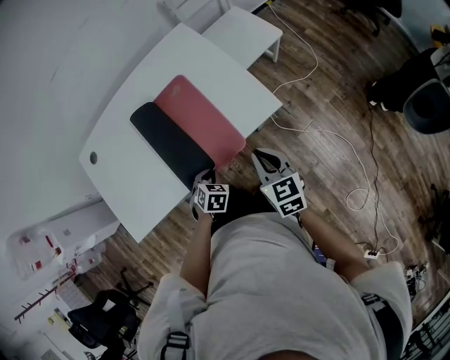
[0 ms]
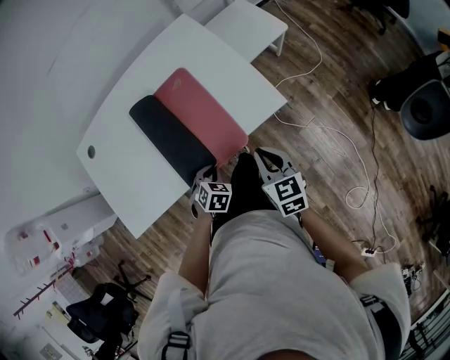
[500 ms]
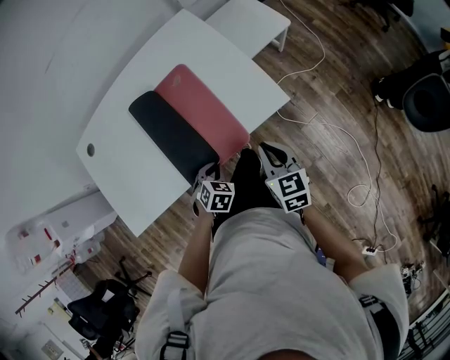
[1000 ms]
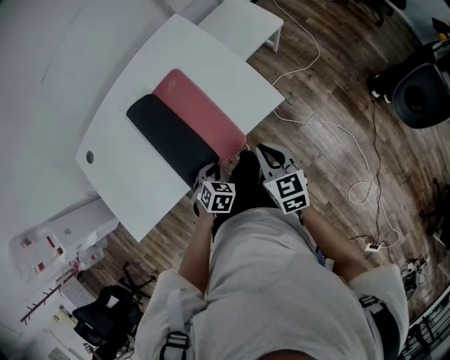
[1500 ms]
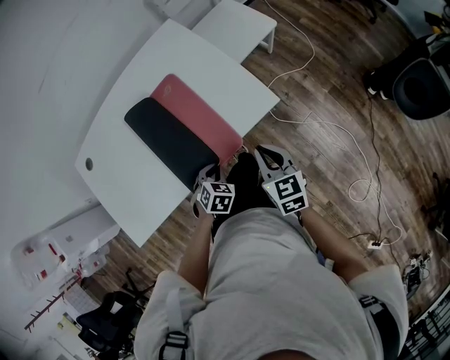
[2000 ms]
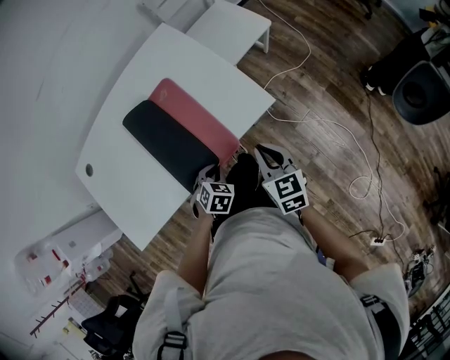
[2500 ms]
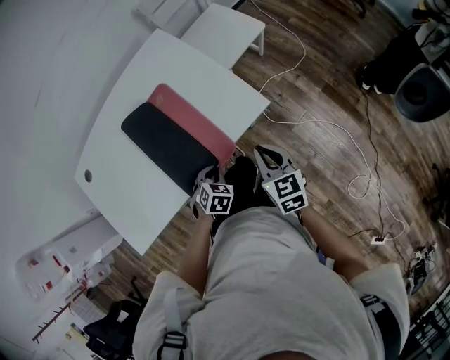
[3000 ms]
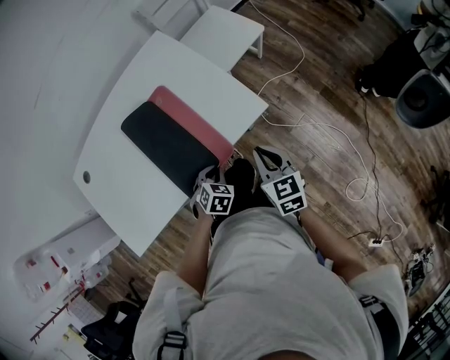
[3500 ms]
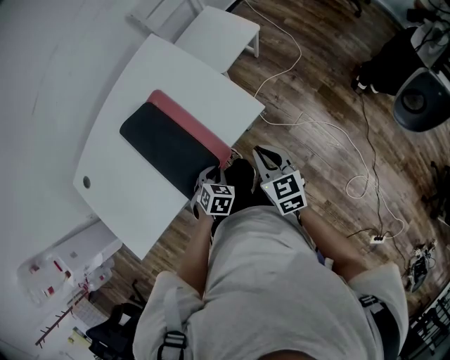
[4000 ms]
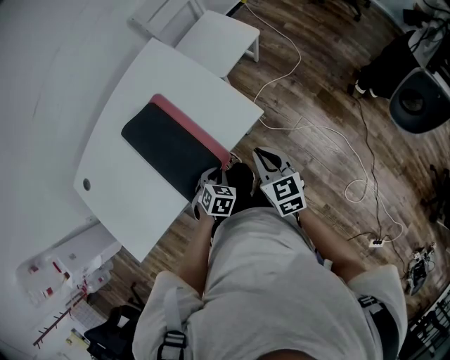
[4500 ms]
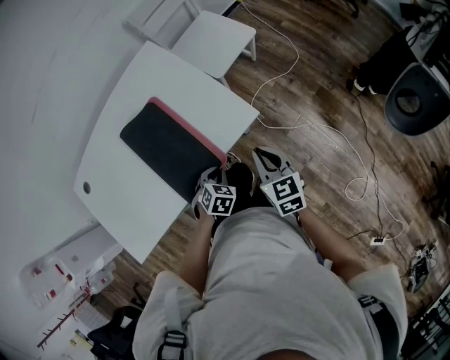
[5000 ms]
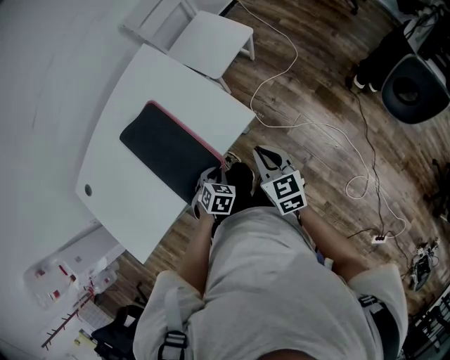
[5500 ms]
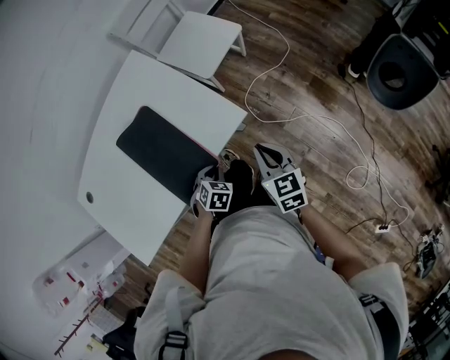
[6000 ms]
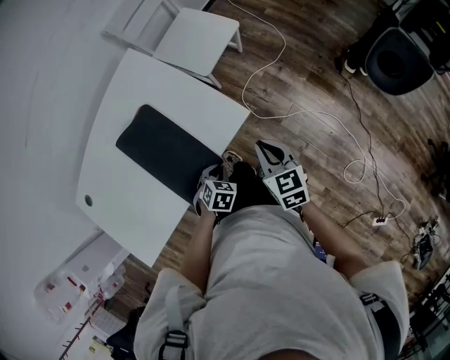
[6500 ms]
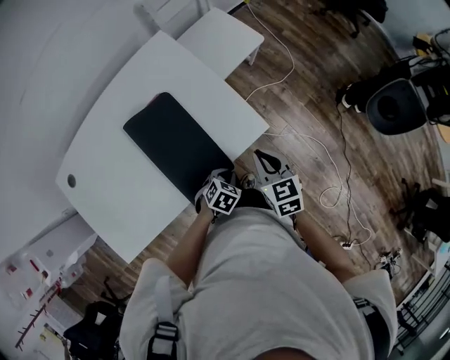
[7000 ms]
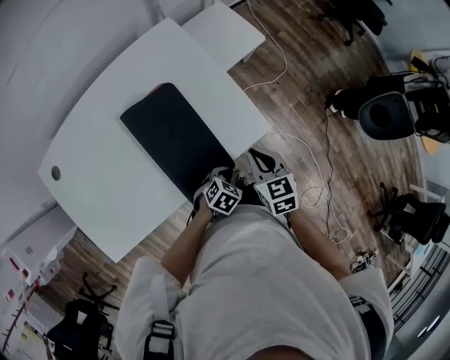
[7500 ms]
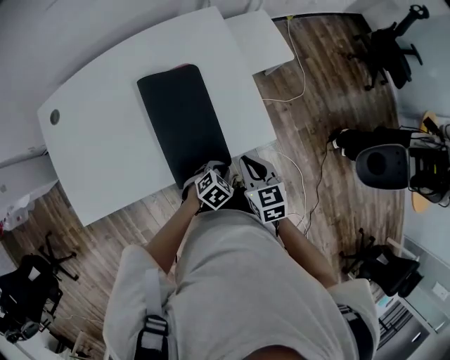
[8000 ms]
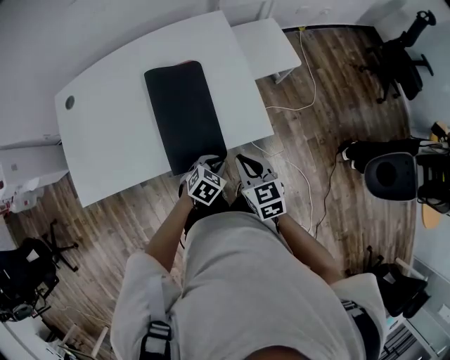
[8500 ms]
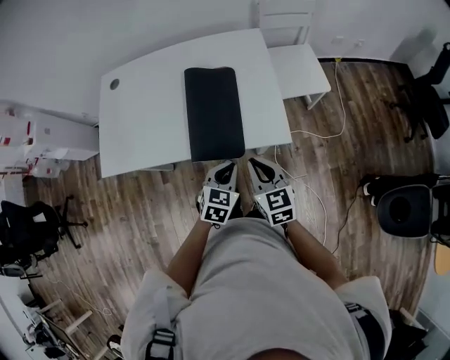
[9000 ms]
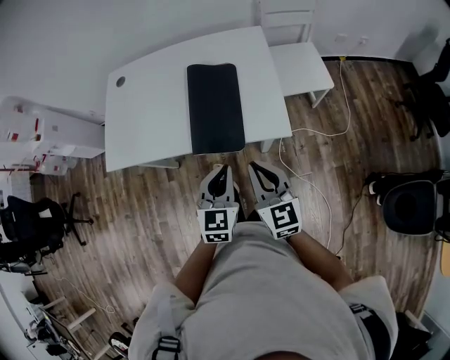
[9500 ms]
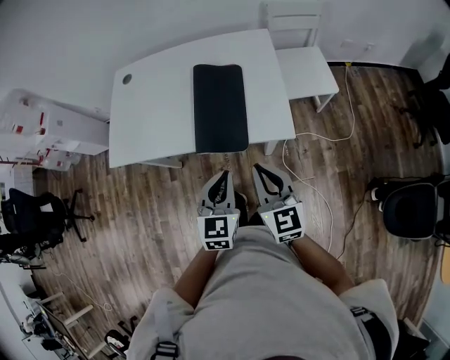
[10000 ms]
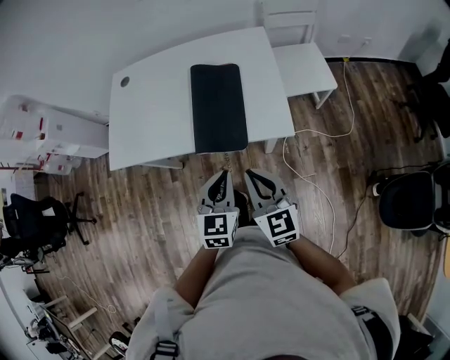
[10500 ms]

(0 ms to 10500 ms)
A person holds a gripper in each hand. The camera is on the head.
0 ms - 2000 ms: There are only small adjustments of the grippers.
2000 ms - 4000 ms: The grippers stay close to where they were, moving slightly.
4000 ms - 6500 ms: The grippers both shift to the right by about 5 cm.
6500 ms - 8500 ms: The right gripper heads to the left, covering about 10 cm, and changes its angle by roughly 30 degrees. Meanwhile the left gripper rotates approximately 20 degrees.
8500 ms - 10500 ms: The left gripper travels upward by roughly 20 cm, and tips its fingers upward by some 30 degrees. The right gripper shifts approximately 10 cm upward, and rotates roughly 30 degrees.

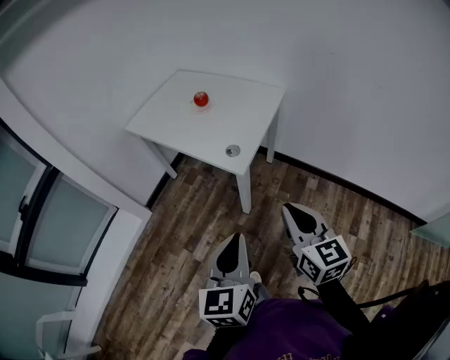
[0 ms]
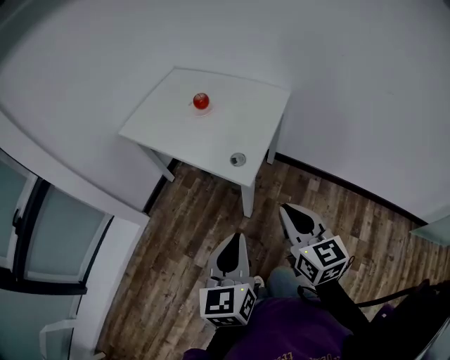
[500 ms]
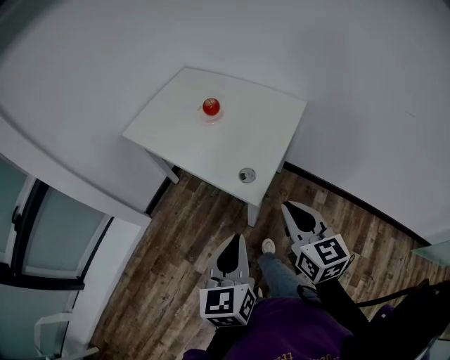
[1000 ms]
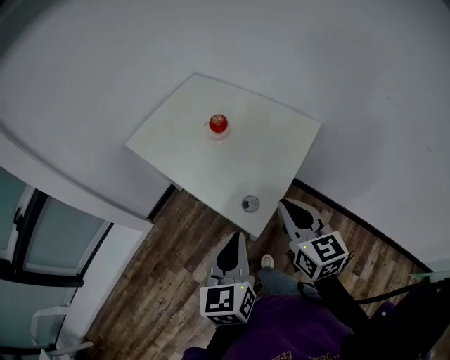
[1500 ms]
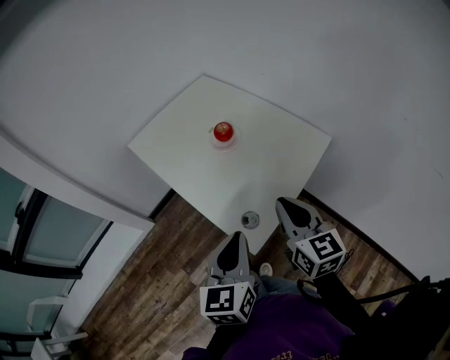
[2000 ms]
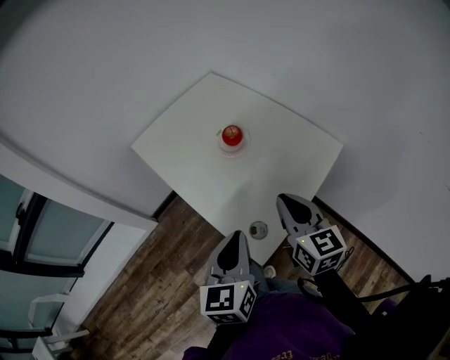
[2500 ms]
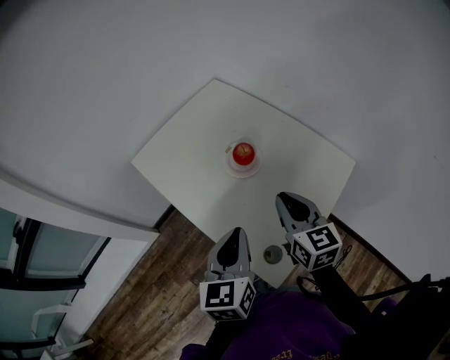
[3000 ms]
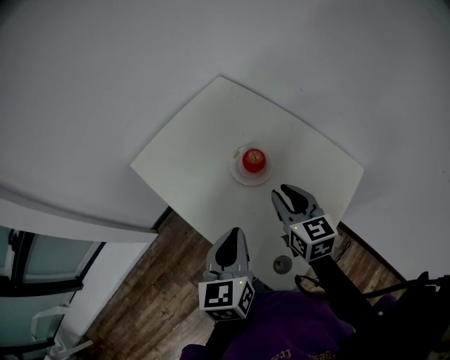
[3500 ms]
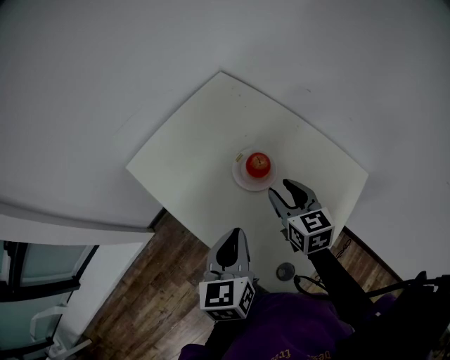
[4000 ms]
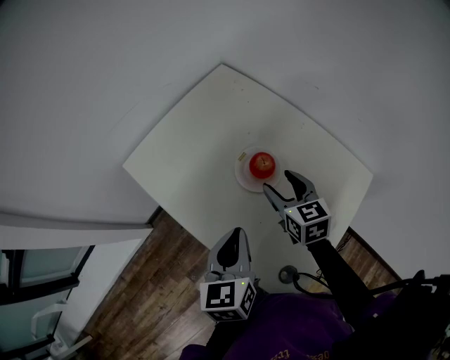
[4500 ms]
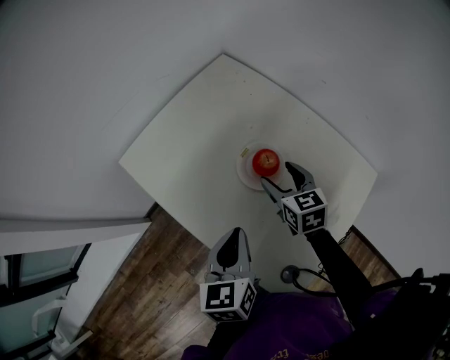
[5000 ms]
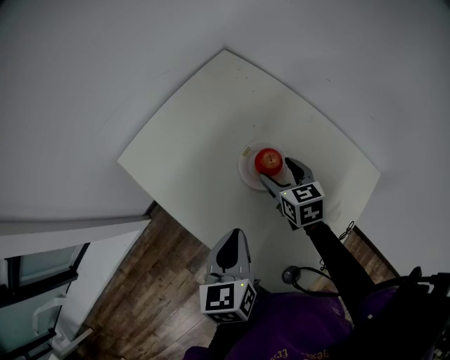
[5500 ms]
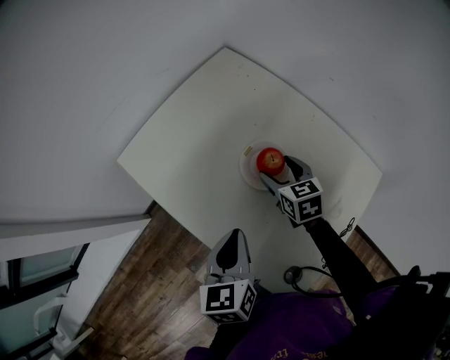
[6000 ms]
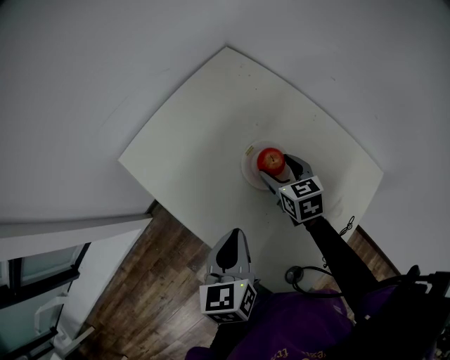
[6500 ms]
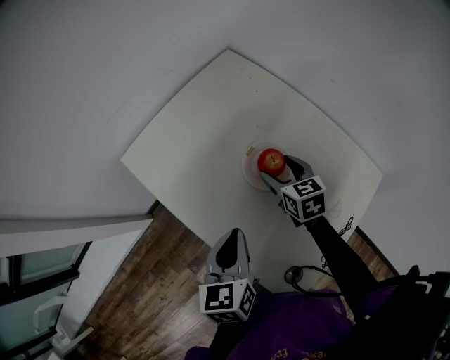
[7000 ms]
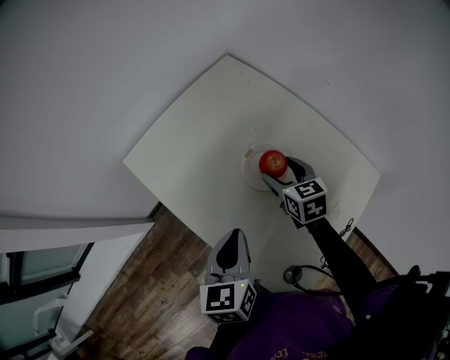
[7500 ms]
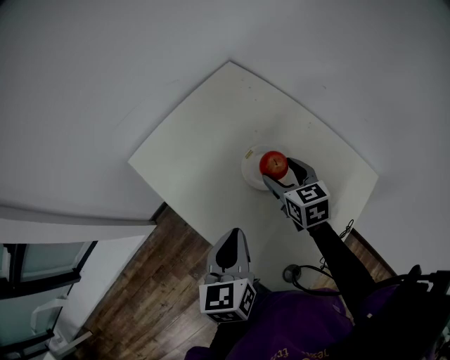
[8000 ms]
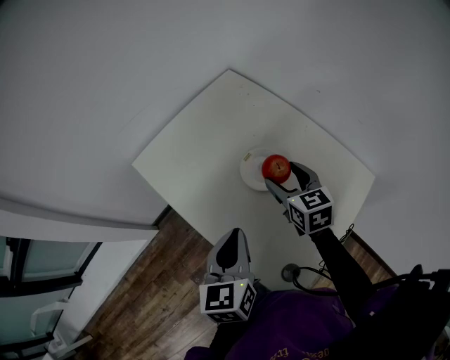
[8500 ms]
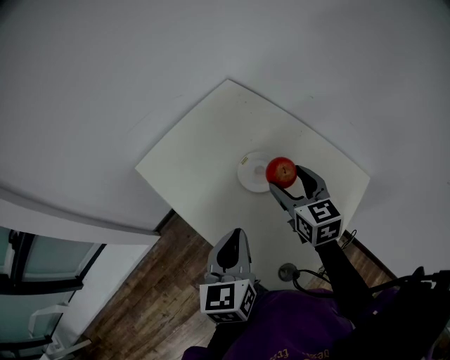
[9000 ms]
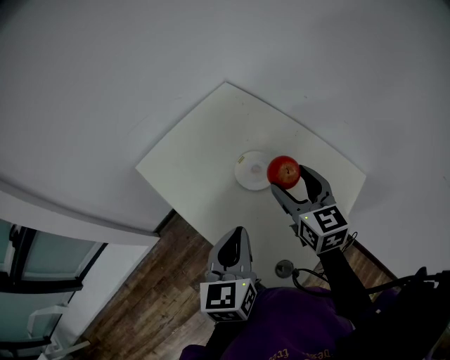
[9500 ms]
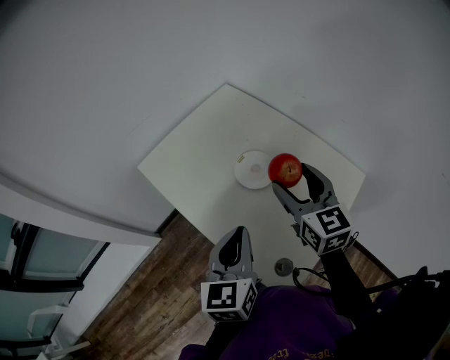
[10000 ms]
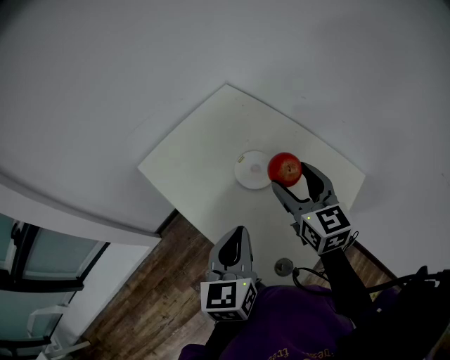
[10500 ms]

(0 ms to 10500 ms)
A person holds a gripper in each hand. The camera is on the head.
0 ms - 2000 ms: The two grippers go about 35 cm forward.
2000 ms - 4000 ms: Both grippers travel together forward, roughly 25 cm. The right gripper opens its fingers.
4000 ms - 6500 ms: The right gripper shifts some 15 cm downward and forward, and opens its fingers. The left gripper shifts by some 5 cm.
6500 ms - 8500 ms: The right gripper heads upward, covering roughly 10 cm. Meanwhile the left gripper moves upward, some 5 cm.
8500 ms - 10500 ms: The right gripper goes some 15 cm upward and backward; the left gripper ends up approximately 5 cm from where it was.

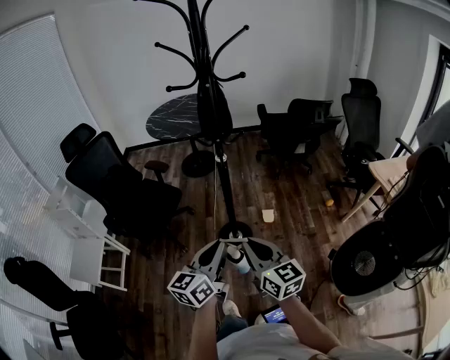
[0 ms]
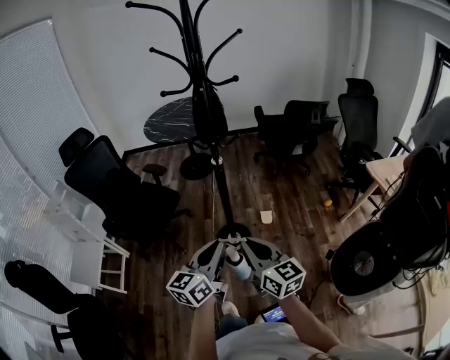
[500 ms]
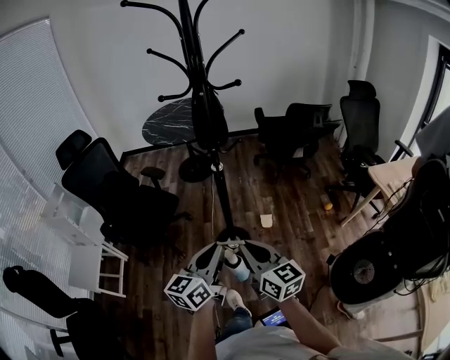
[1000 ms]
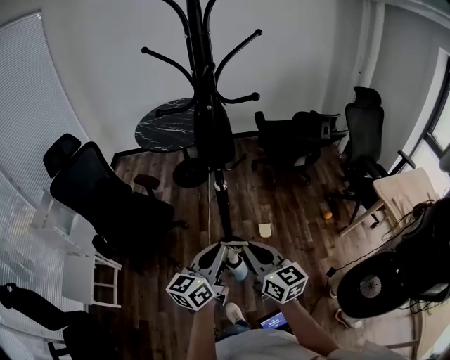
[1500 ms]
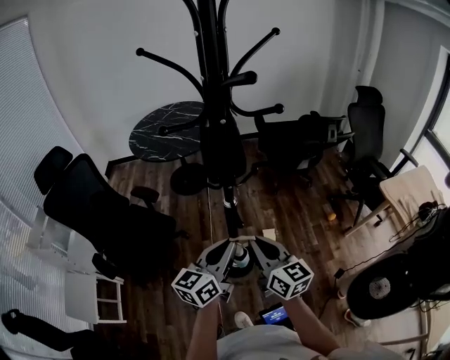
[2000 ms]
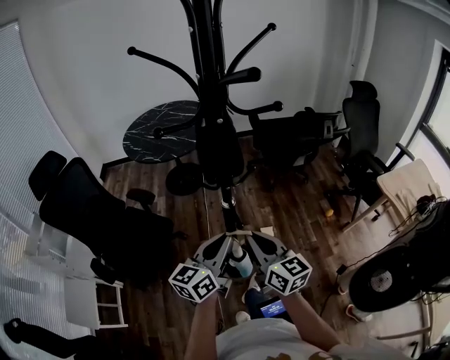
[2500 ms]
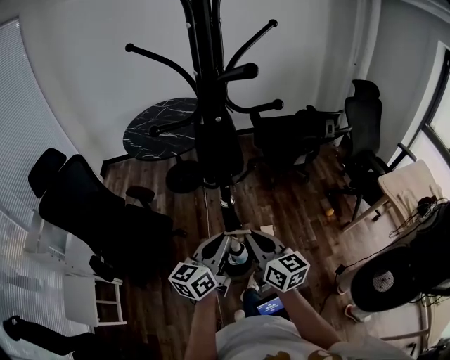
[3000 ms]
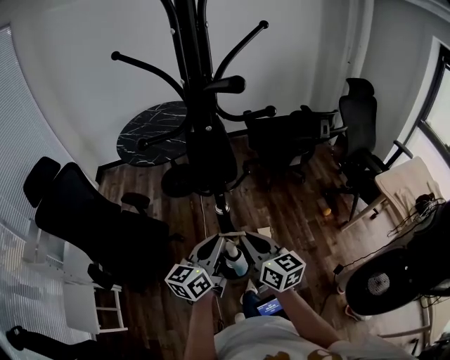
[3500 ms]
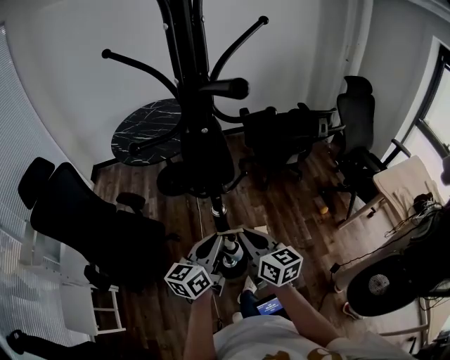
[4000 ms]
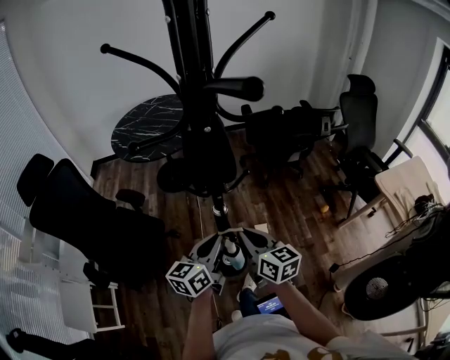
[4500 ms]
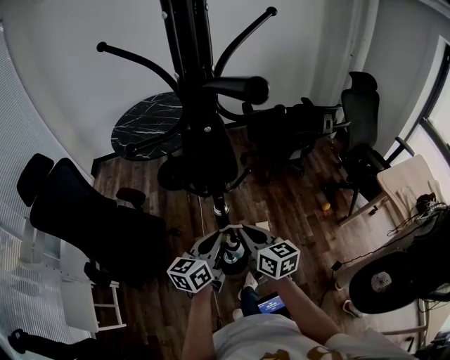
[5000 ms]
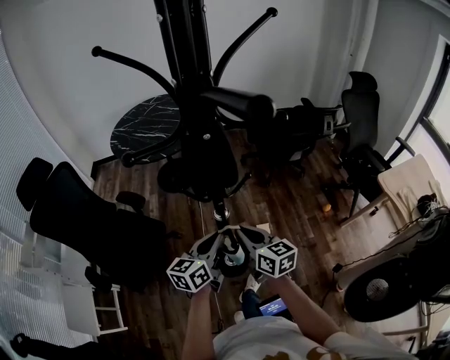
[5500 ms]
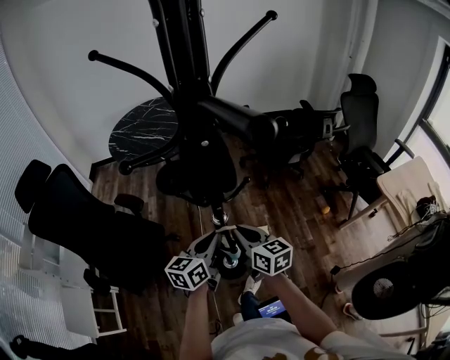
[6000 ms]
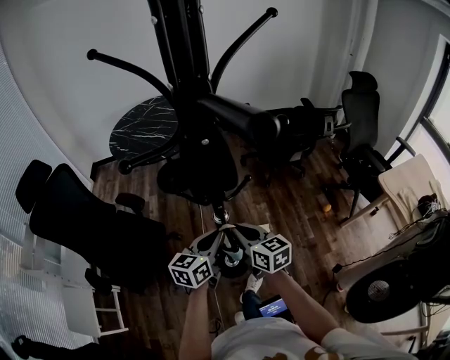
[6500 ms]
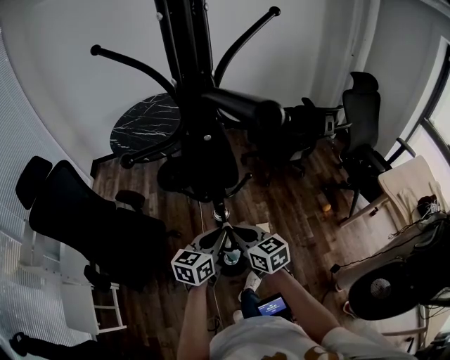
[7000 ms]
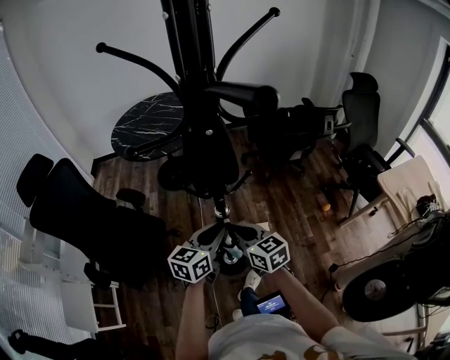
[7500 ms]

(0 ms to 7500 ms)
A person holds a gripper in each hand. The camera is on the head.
0 ms - 2000 ms: The two grippers go about 25 cm forward.
2000 ms - 4000 ms: Both grippers travel together forward, roughly 5 cm.
4000 ms - 5500 ms: The left gripper ends up about 5 cm from where it was. Meanwhile the right gripper moves some 5 cm.
5500 ms - 7500 ms: There are only small adjustments of the grippers.
